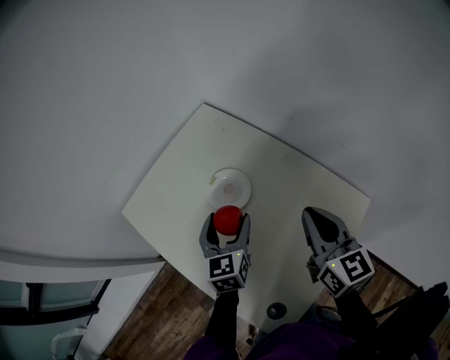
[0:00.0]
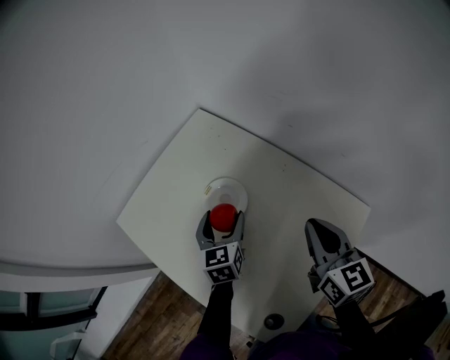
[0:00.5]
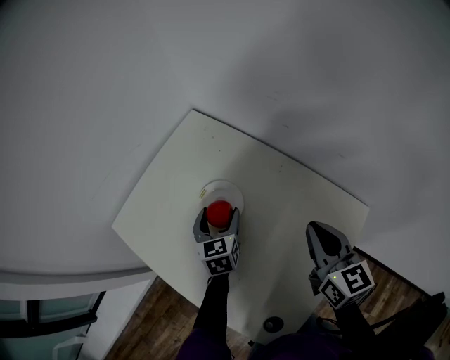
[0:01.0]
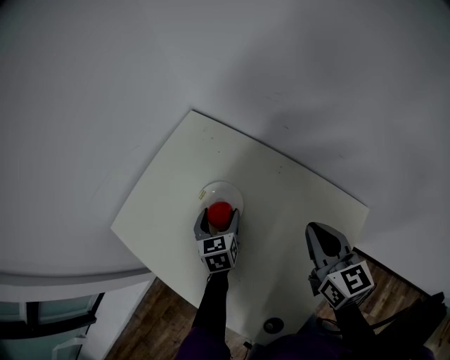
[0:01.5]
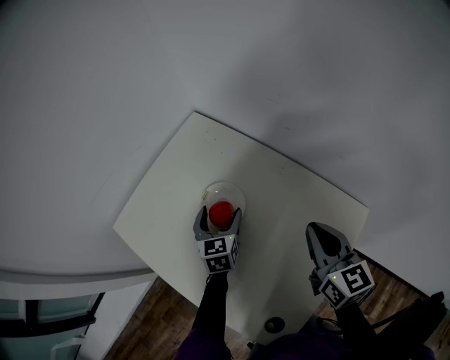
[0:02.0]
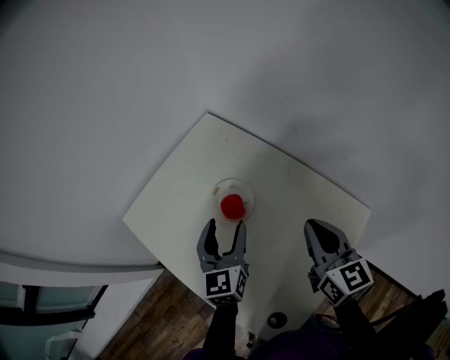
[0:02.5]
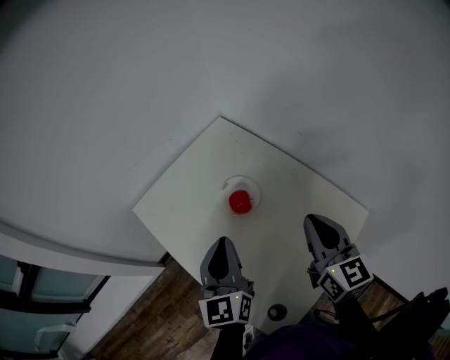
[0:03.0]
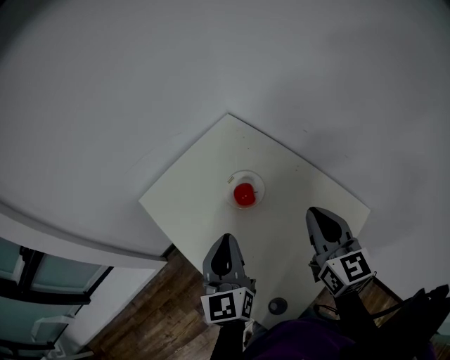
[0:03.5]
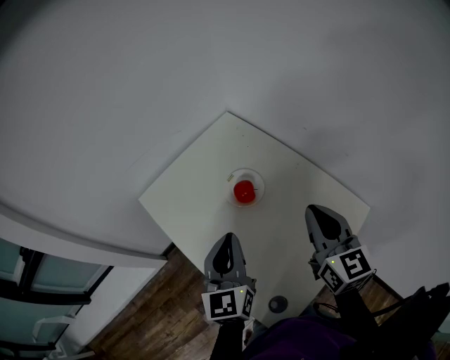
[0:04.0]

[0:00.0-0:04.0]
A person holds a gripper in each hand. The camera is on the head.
0:00.0 to 0:02.0: The left gripper moves forward and downward, some 10 cm.
0:02.0 to 0:04.0: The left gripper shifts some 30 cm upward and backward, changes its angle by some 30 degrees, and closes its fingers, while the right gripper is displaced upward and to the left by some 10 cm.

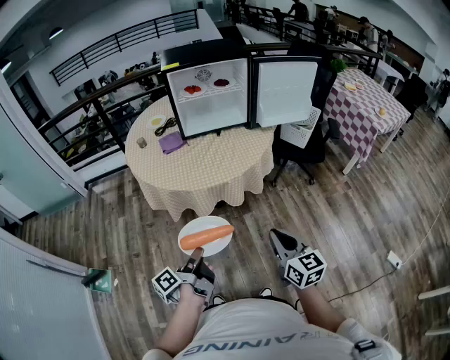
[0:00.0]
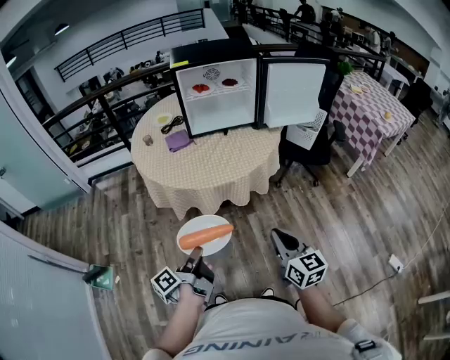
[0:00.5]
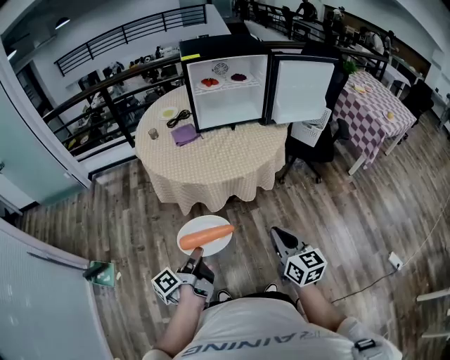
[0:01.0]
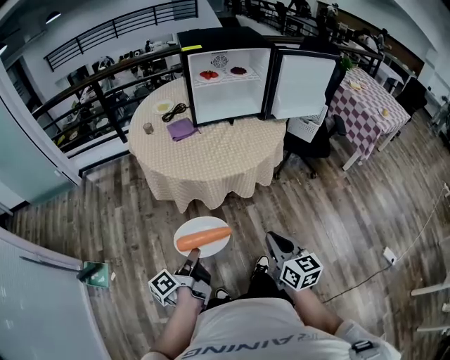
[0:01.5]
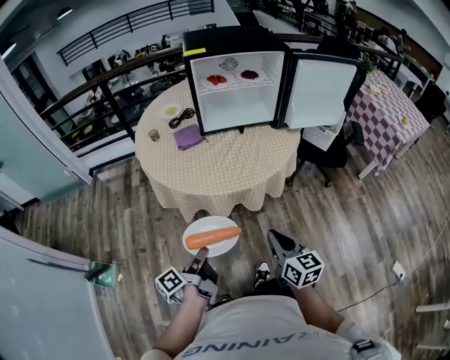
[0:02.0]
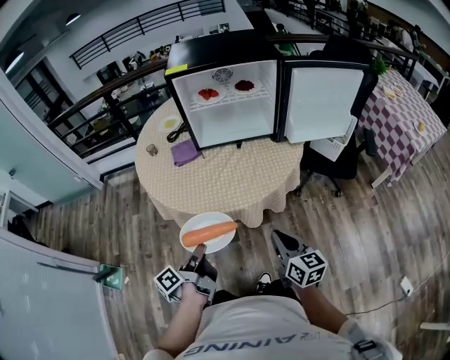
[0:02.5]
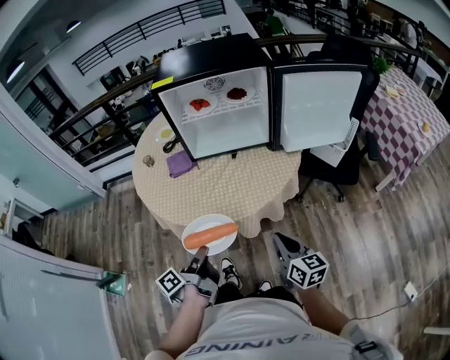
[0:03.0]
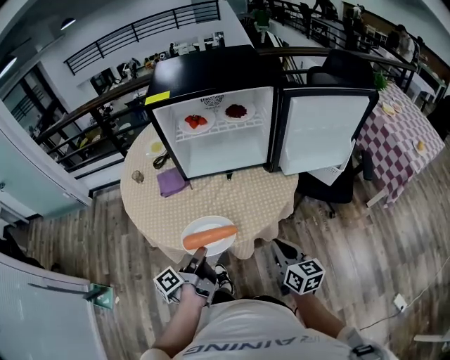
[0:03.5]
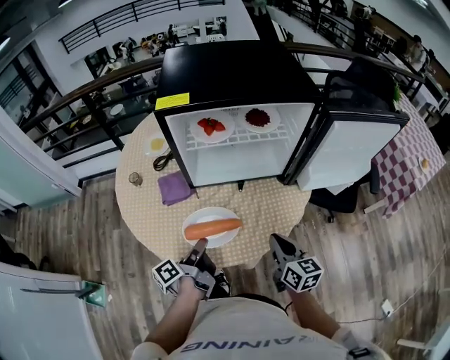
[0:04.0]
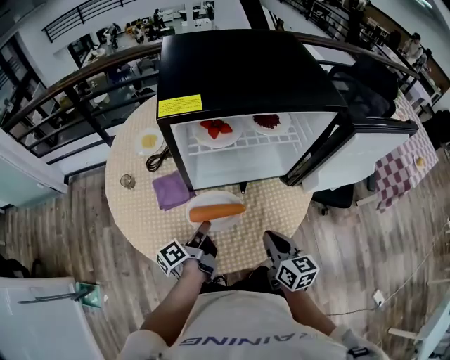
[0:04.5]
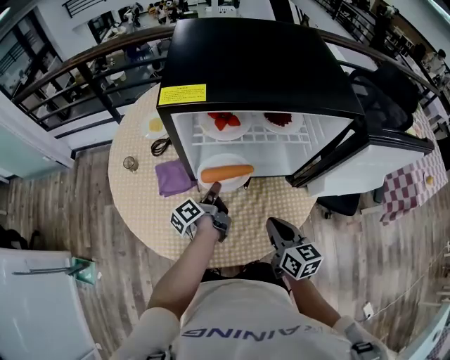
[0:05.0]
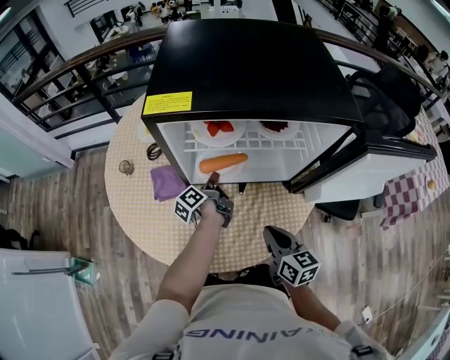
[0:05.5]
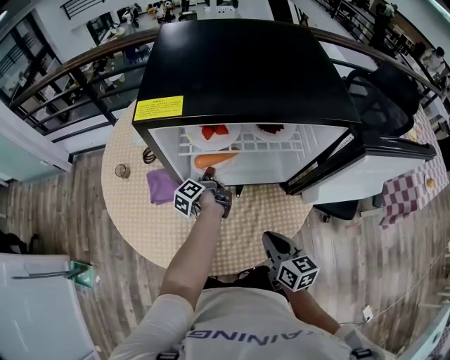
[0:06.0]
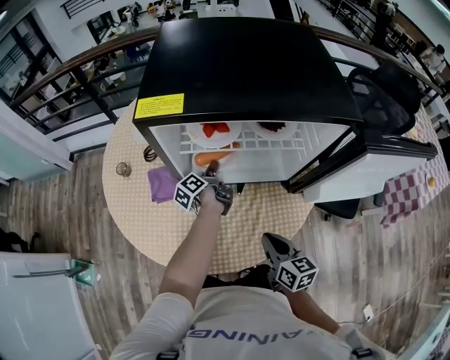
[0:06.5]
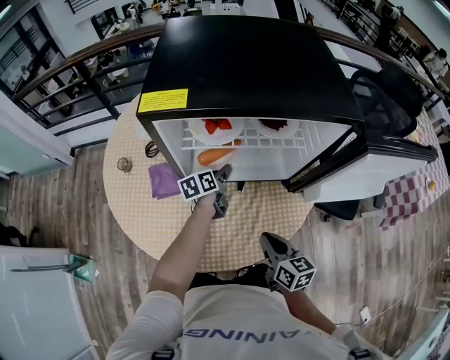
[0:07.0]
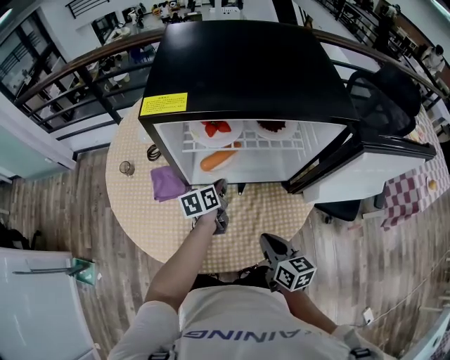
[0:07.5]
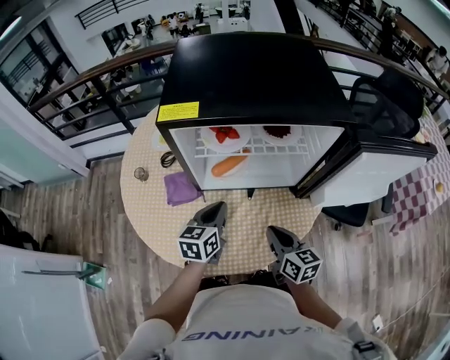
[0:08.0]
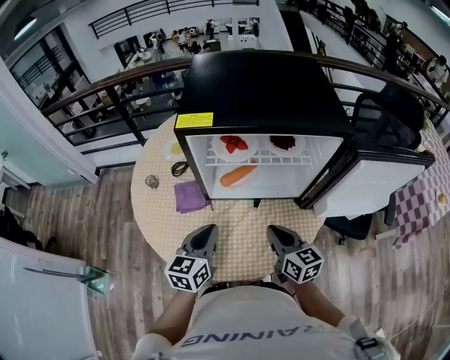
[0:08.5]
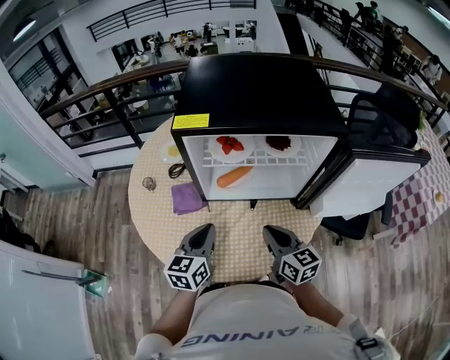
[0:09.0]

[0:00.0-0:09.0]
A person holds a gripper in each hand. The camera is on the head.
0:00.0 to 0:02.0: The right gripper moves some 15 cm.
0:02.0 to 0:04.5: The right gripper shifts by approximately 35 cm.
0:07.0 to 0:09.0: The right gripper goes roughly 10 cm upward.

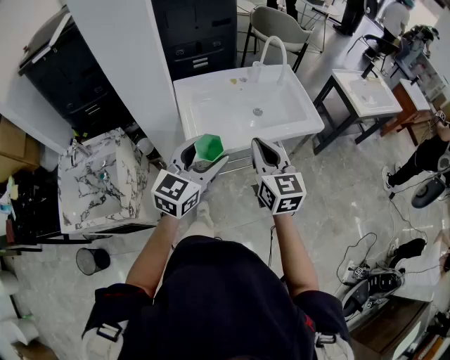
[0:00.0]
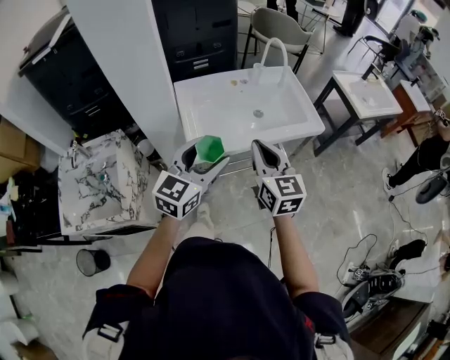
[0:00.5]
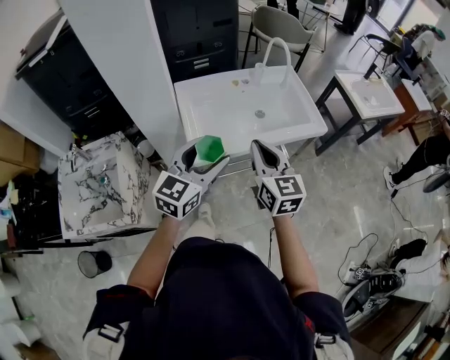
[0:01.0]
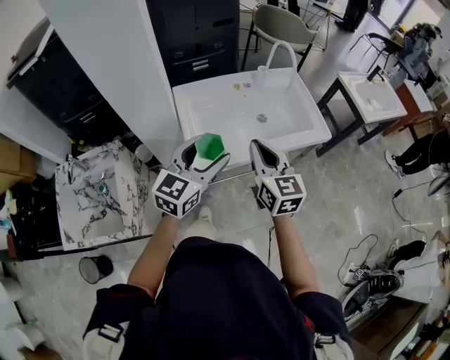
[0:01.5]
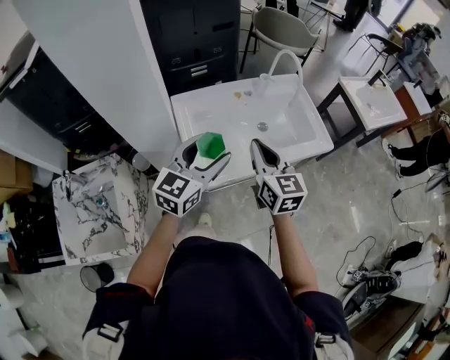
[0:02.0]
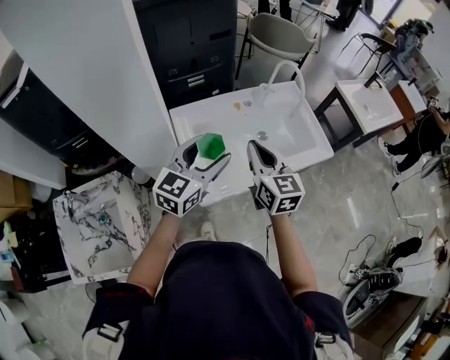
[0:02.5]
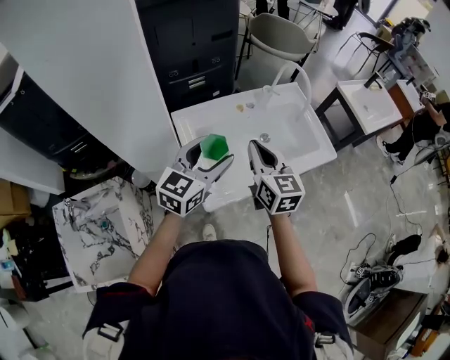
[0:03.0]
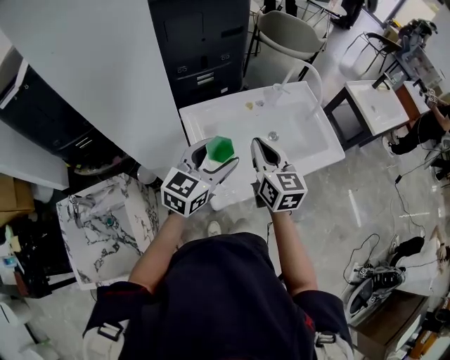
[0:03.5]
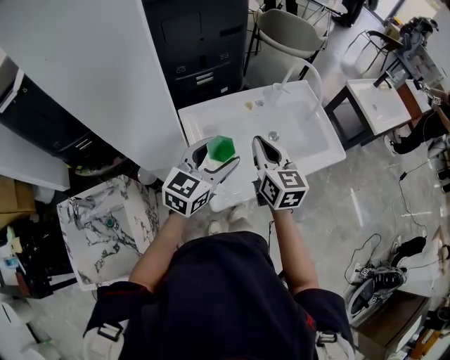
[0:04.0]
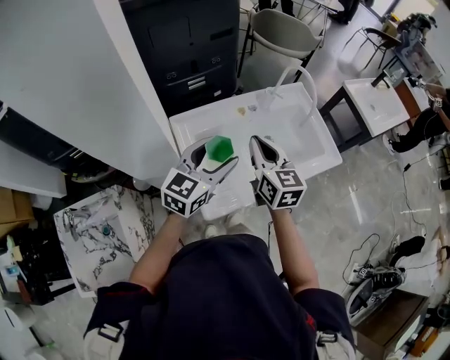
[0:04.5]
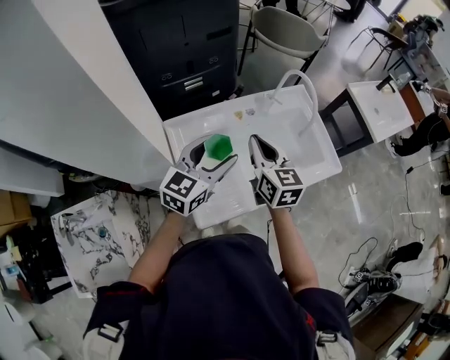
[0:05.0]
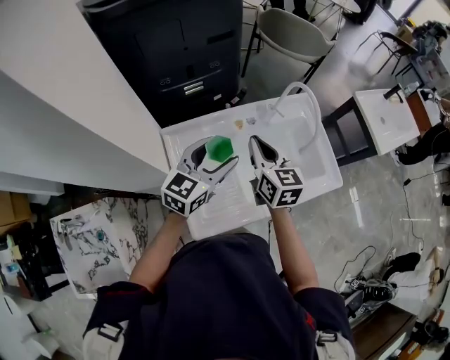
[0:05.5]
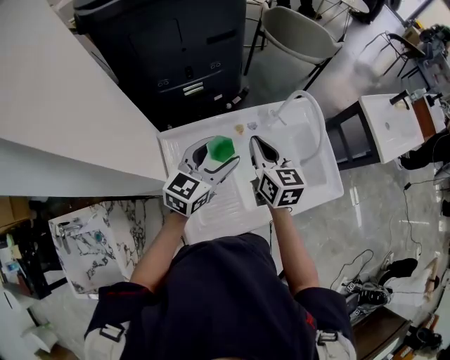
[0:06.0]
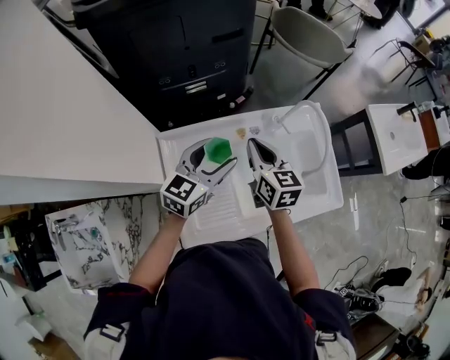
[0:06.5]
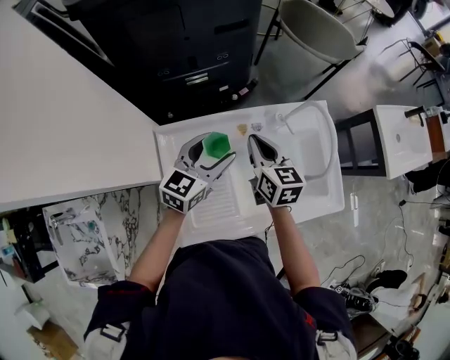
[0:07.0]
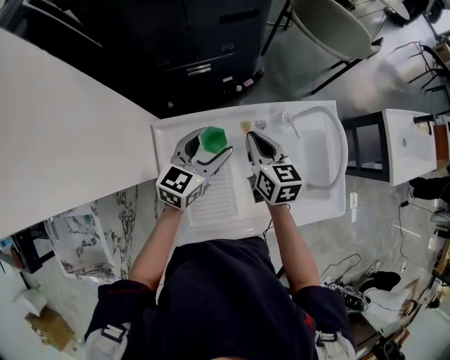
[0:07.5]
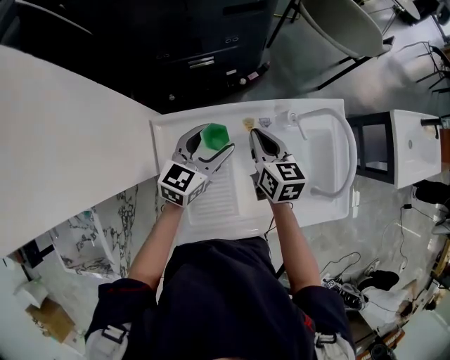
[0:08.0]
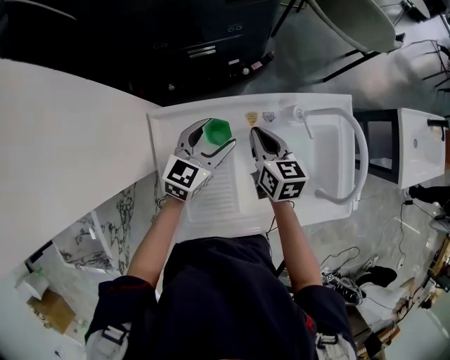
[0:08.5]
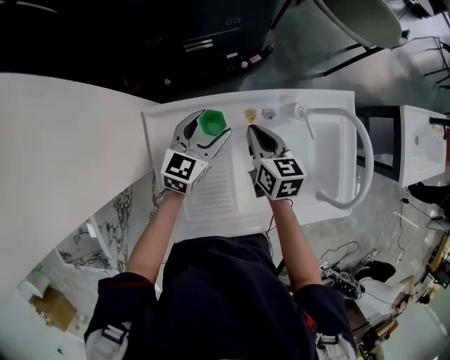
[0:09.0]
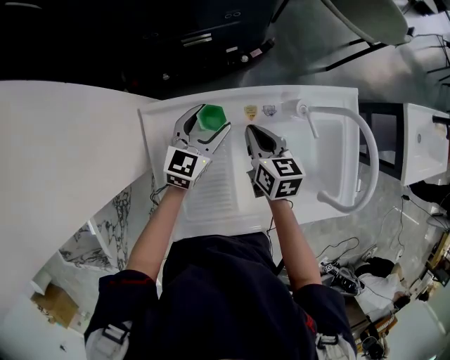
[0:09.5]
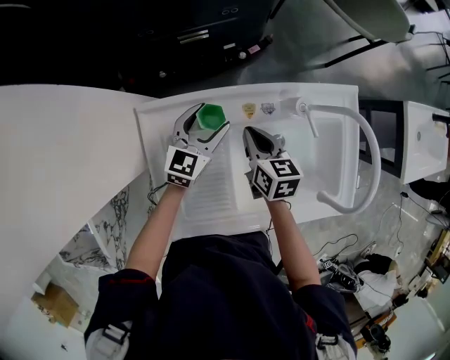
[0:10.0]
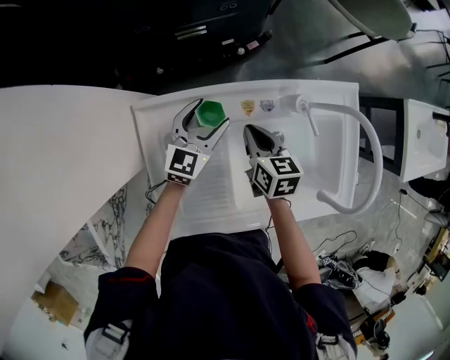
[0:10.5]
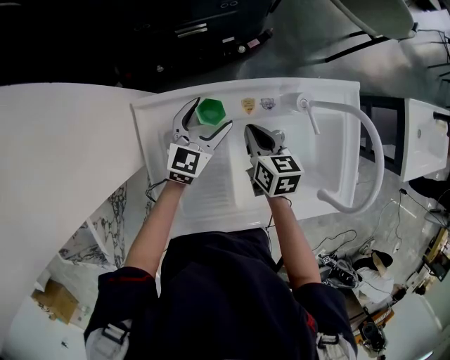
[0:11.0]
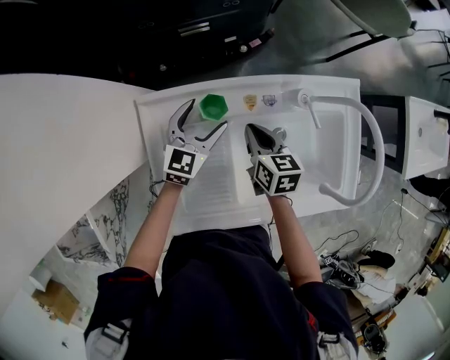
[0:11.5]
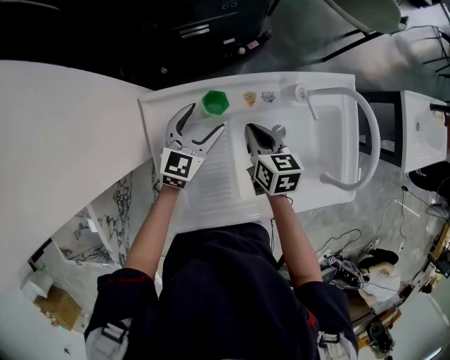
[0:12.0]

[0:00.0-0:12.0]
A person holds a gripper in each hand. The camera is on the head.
0:00.0 to 0:02.0: The two grippers go roughly 15 cm forward.
0:02.0 to 0:04.0: The grippers both shift forward and to the left by some 10 cm.
0:04.0 to 0:06.0: Both grippers move forward, some 20 cm.
0:06.0 to 0:08.0: Both grippers travel together downward and forward, some 15 cm.
0:08.0 to 0:10.0: Both grippers travel together downward, about 10 cm.
0:10.0 to 0:12.0: The grippers move only a little.

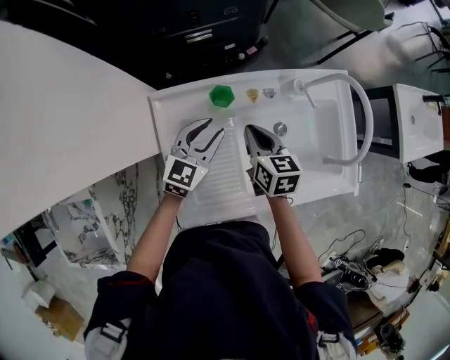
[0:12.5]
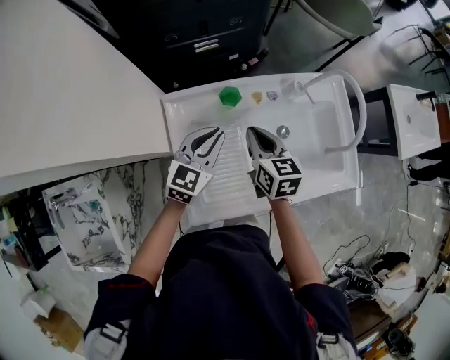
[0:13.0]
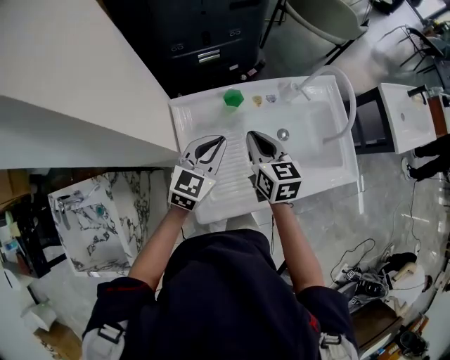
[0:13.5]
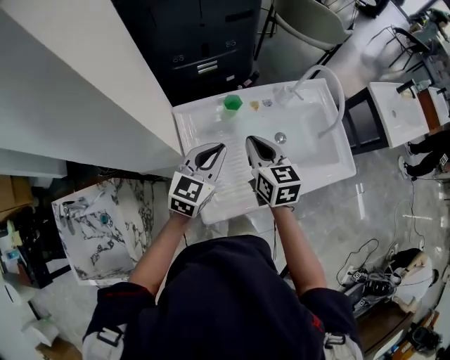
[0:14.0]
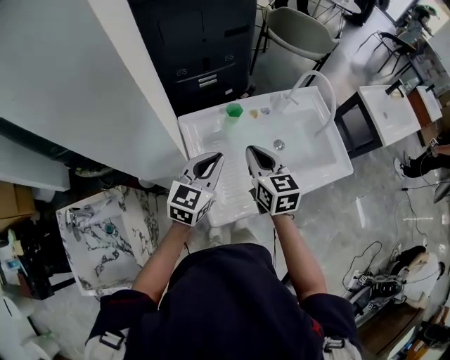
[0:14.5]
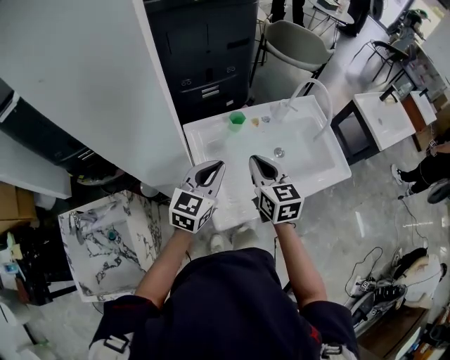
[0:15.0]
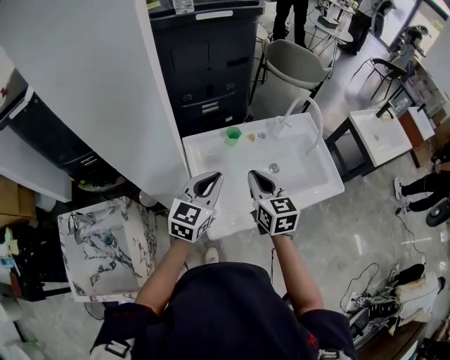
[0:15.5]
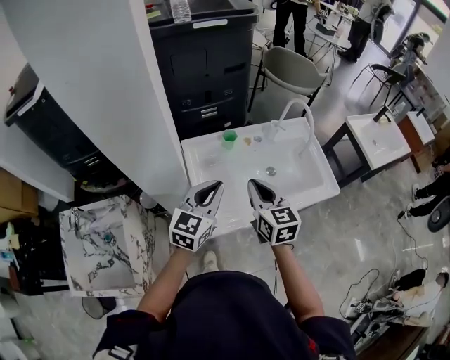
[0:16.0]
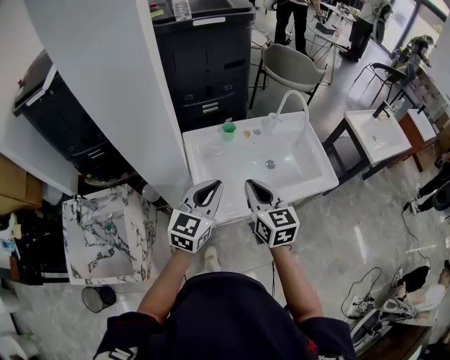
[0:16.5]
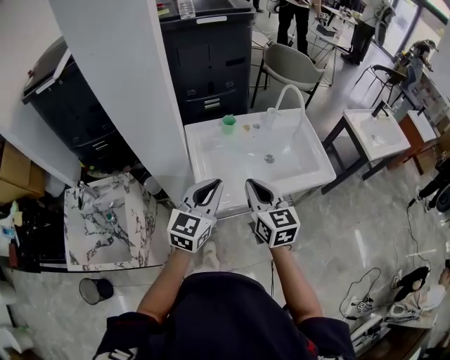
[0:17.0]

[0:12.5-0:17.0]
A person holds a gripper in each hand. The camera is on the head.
0:12.5 to 0:14.5: The left gripper goes about 20 cm backward and upward. The right gripper is displaced upward and backward by roughly 20 cm.
0:14.5 to 0:17.0: The left gripper moves backward and upward, about 20 cm, while the right gripper is displaced backward by about 20 cm.
